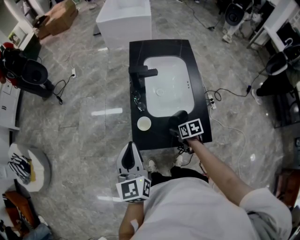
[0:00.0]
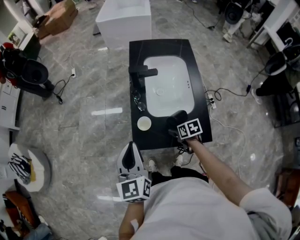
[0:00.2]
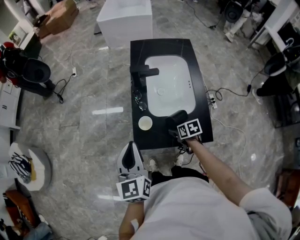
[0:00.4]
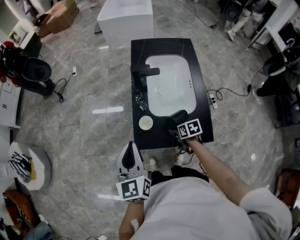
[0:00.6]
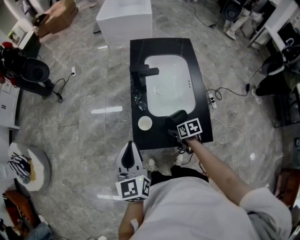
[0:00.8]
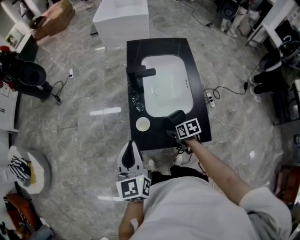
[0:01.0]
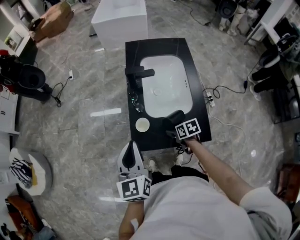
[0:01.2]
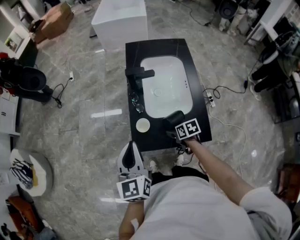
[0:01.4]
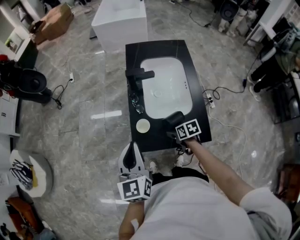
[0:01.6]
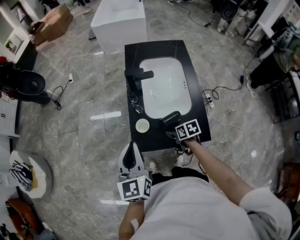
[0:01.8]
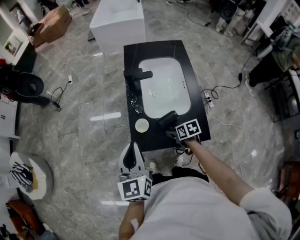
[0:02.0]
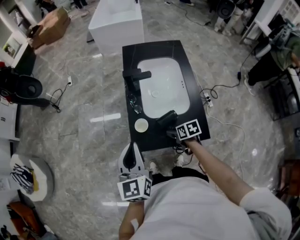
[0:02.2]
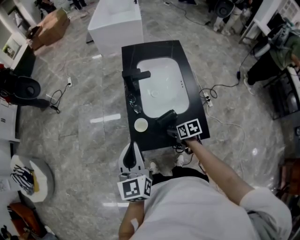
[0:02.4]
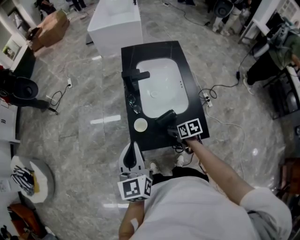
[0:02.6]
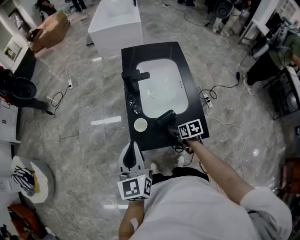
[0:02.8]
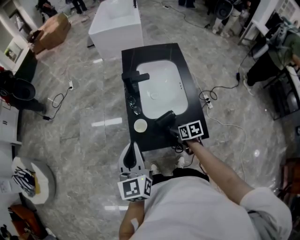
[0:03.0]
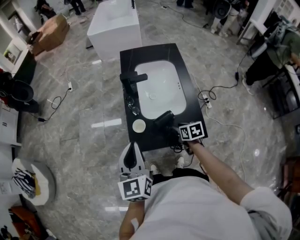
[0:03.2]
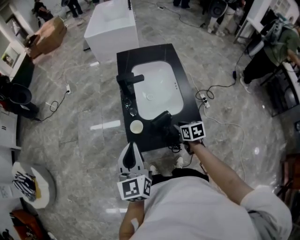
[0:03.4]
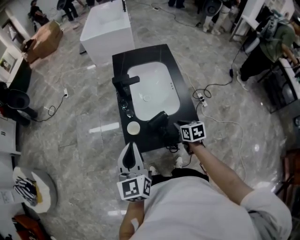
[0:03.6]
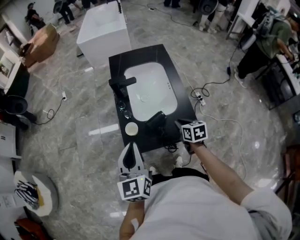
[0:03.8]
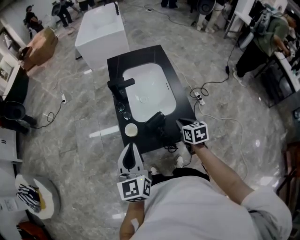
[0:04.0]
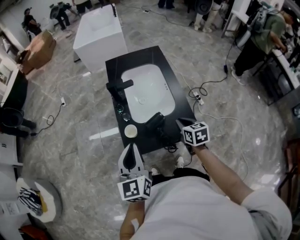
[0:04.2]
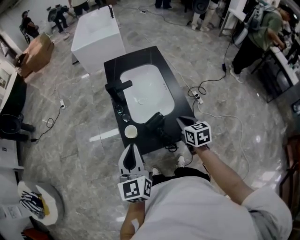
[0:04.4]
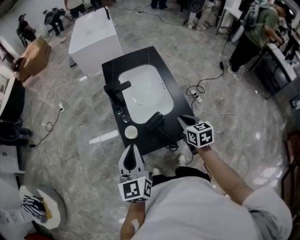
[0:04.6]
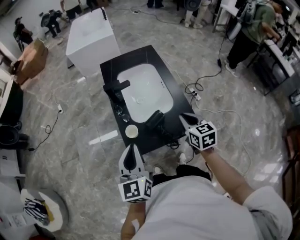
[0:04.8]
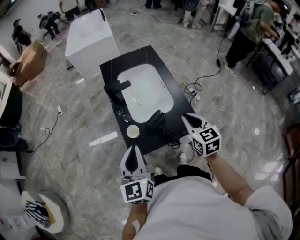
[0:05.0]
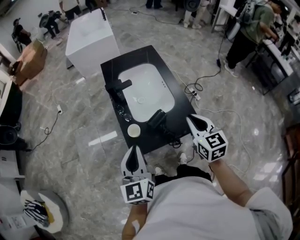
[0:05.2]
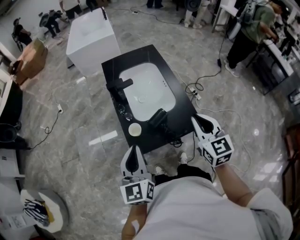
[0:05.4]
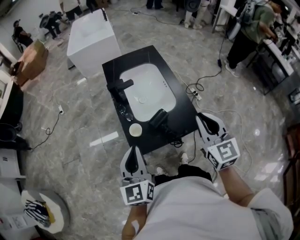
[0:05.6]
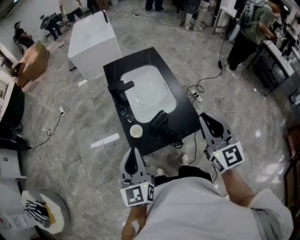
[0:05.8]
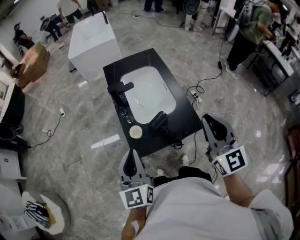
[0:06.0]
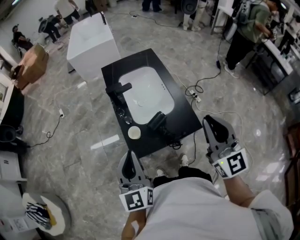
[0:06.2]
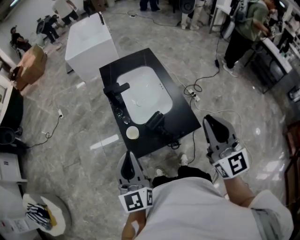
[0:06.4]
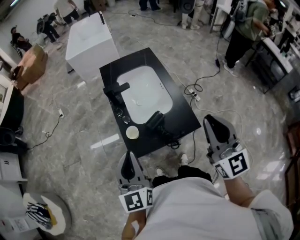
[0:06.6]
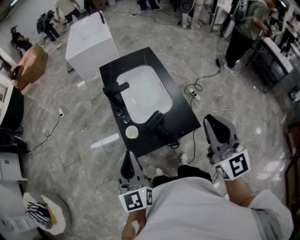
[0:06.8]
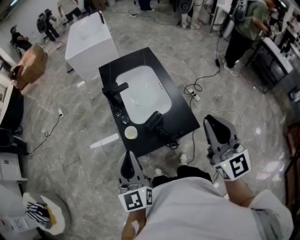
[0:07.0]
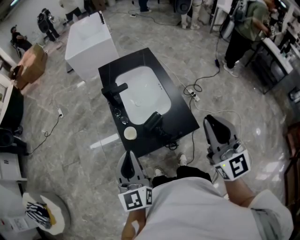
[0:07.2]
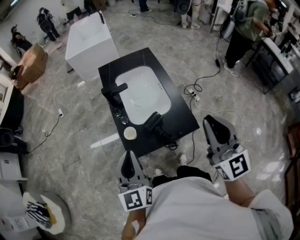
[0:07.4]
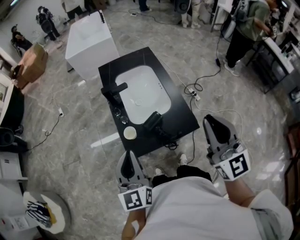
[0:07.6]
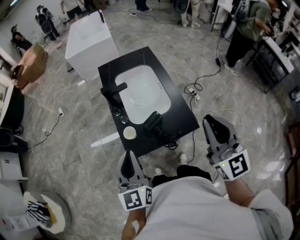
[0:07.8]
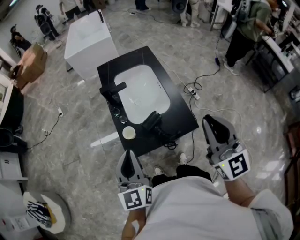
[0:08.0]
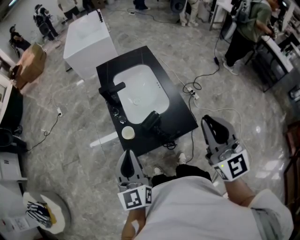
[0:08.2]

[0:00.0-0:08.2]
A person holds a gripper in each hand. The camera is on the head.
0:00.0 to 0:01.6: The grippers move only a little.
0:01.6 to 0:03.2: The right gripper changes place by some 5 cm, and closes.
0:03.2 to 0:05.0: The right gripper moves upward, roughly 20 cm, swivels some 40 degrees, and closes.
0:05.0 to 0:06.6: The right gripper goes roughly 20 cm upward and backward, and points its fingers about 30 degrees further upward.
0:06.6 to 0:08.2: The grippers make only small movements.

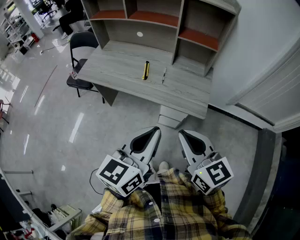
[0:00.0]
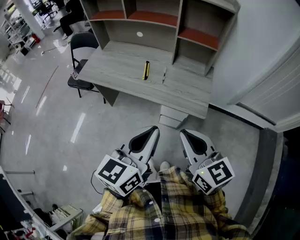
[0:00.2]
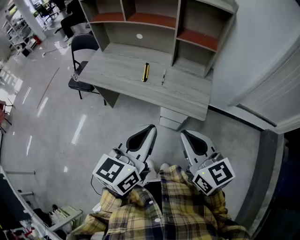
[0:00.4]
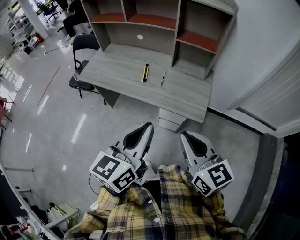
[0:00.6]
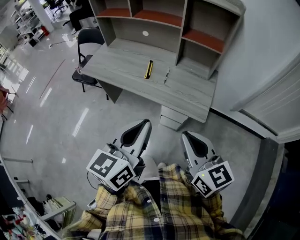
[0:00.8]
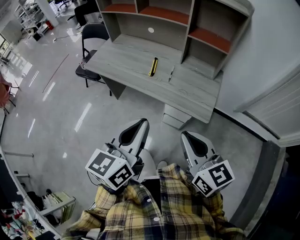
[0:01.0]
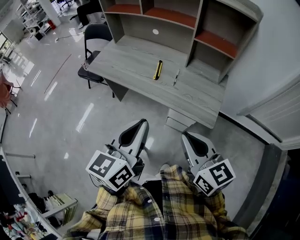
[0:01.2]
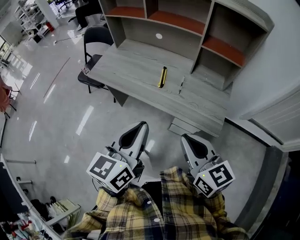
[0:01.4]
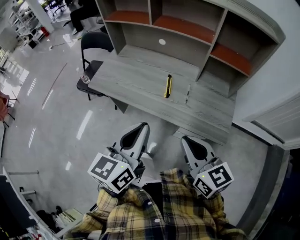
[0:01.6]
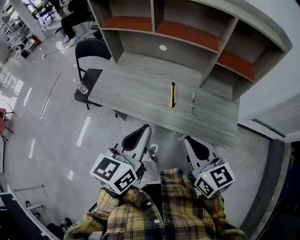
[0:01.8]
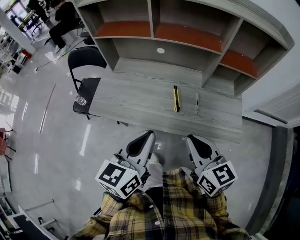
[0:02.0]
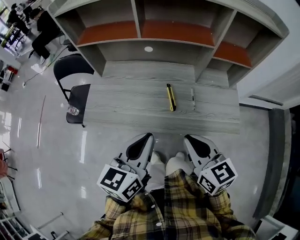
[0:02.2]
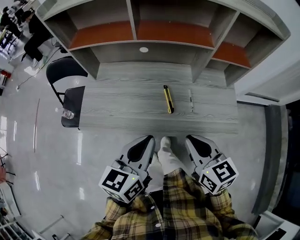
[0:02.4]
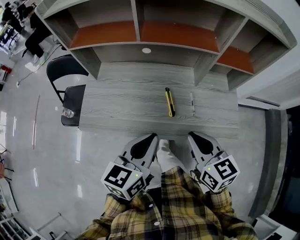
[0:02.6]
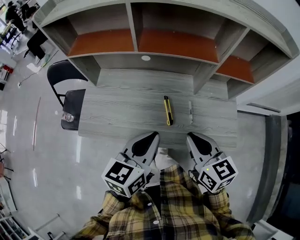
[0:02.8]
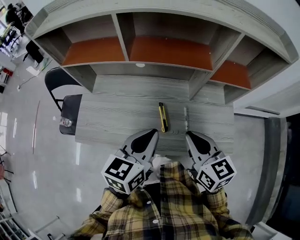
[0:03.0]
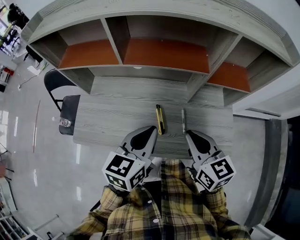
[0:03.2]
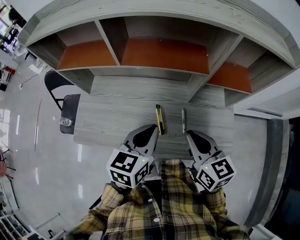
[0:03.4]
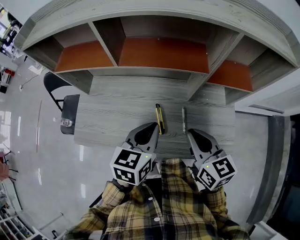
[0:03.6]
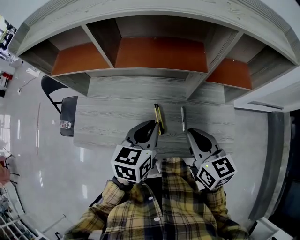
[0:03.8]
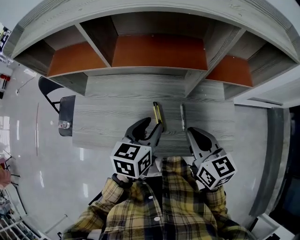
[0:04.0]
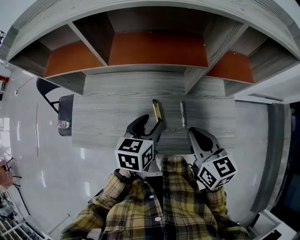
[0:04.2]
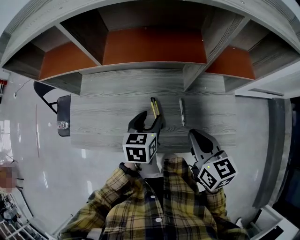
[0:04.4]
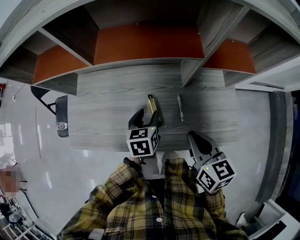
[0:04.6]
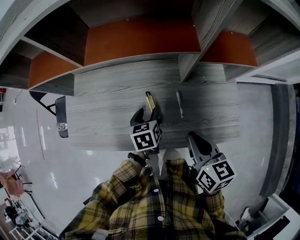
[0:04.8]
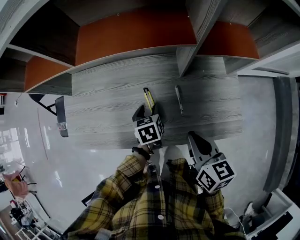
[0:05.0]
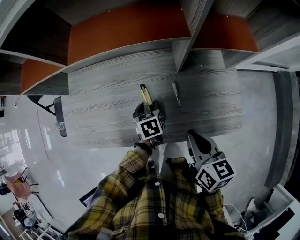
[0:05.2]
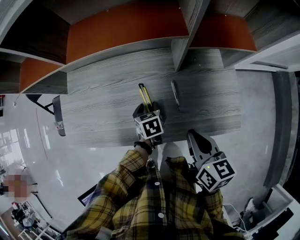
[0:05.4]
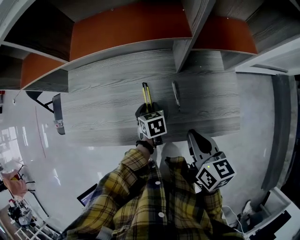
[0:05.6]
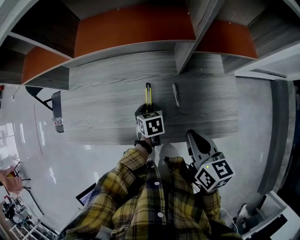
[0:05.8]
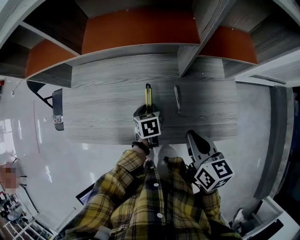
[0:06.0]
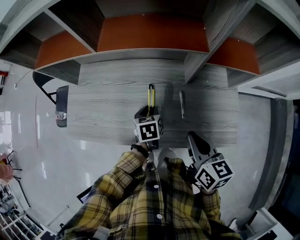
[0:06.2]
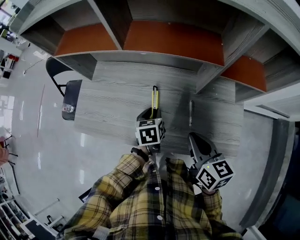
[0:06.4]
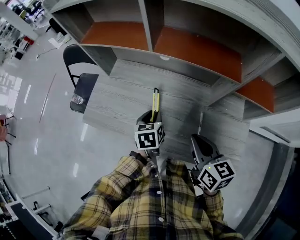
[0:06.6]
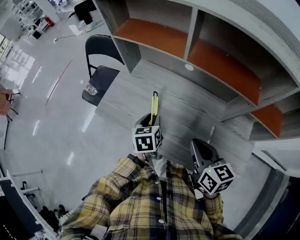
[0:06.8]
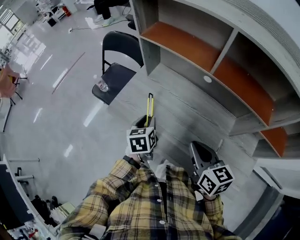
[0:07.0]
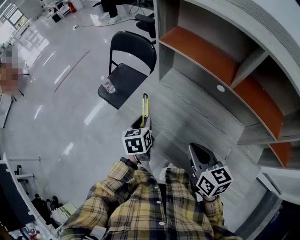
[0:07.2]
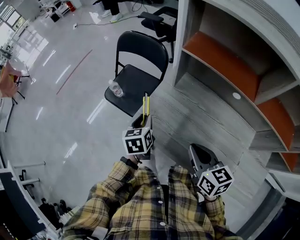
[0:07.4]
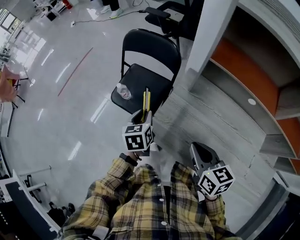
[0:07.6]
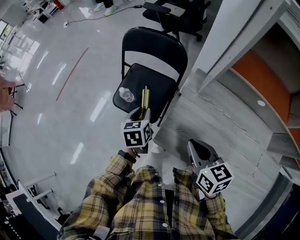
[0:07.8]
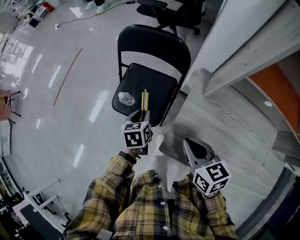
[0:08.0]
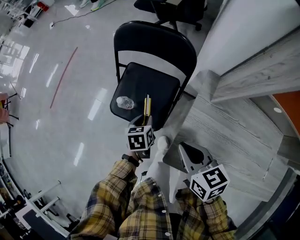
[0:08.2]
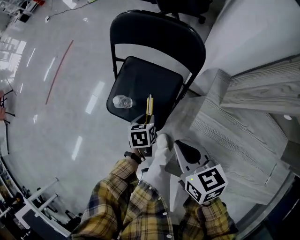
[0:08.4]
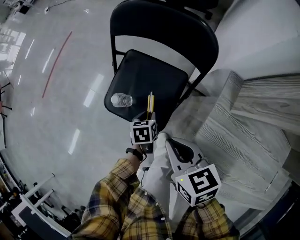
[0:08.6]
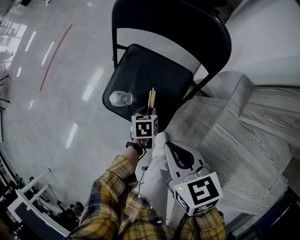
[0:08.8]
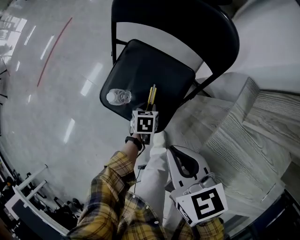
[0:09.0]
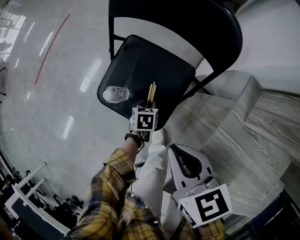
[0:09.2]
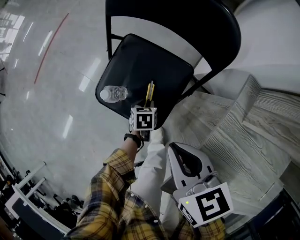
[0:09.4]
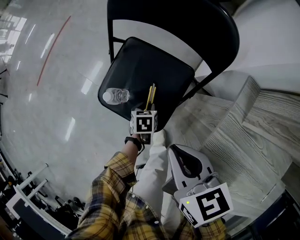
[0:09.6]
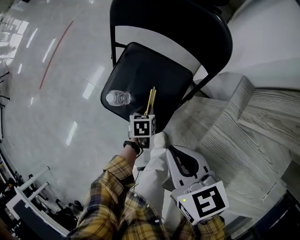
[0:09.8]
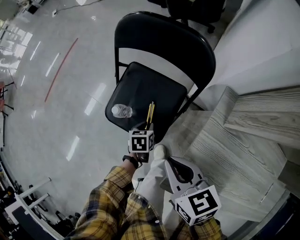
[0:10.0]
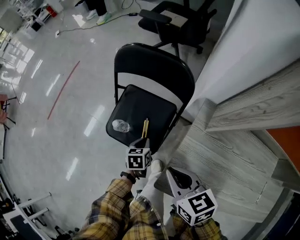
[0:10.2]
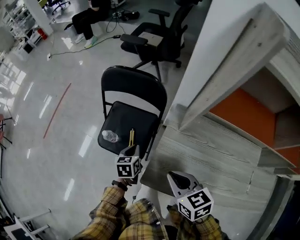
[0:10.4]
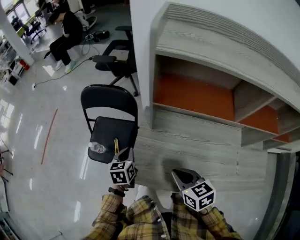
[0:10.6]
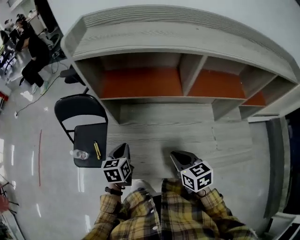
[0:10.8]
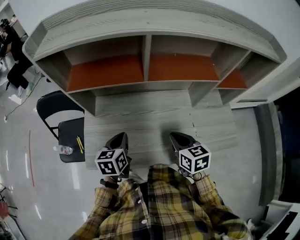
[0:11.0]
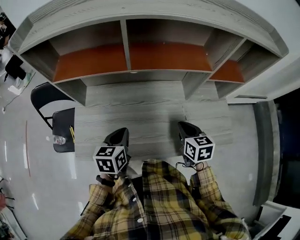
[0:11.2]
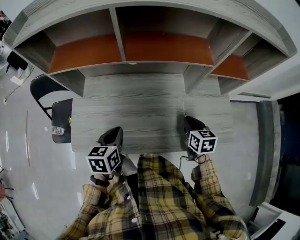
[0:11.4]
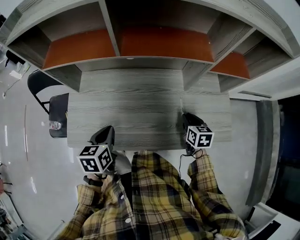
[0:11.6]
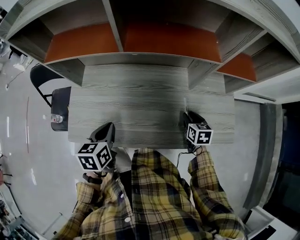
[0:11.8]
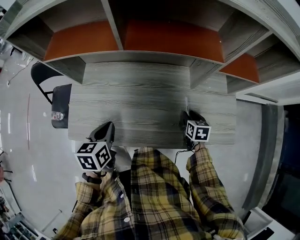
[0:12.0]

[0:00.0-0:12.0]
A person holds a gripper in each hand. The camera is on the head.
0:00.0 to 0:01.6: Both grippers move forward and to the left, about 20 cm.
0:01.6 to 0:03.0: Both grippers travel together forward, approximately 25 cm. The left gripper rotates roughly 30 degrees. Meanwhile the right gripper turns by roughly 20 degrees.
0:03.0 to 0:04.4: The left gripper goes approximately 15 cm downward and forward, swivels approximately 20 degrees, and opens up; the right gripper is displaced downward and to the right by some 5 cm.
0:04.4 to 0:06.0: The right gripper moves downward, about 5 cm, while the left gripper shifts about 15 cm downward, rotates roughly 20 degrees, and closes up.
0:06.0 to 0:07.6: Both grippers are carried approximately 50 cm. The left gripper changes its angle by some 30 degrees, while the right gripper turns by approximately 40 degrees.
0:07.6 to 0:09.0: The right gripper goes roughly 35 cm forward, to the left and downward. The left gripper is displaced downward by approximately 40 cm, and rotates approximately 30 degrees.
0:09.0 to 0:10.4: The right gripper heads upward, backward and to the right, covering about 20 cm, while the left gripper heads upward, covering roughly 30 cm, and closes up.
0:10.4 to 0:12.0: The pair of grippers is taken some 50 cm. The right gripper turns by about 40 degrees, and opens. Meanwhile the left gripper changes its angle by approximately 20 degrees.

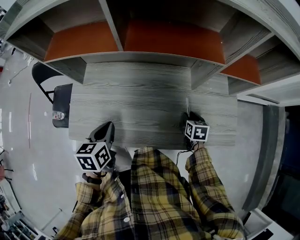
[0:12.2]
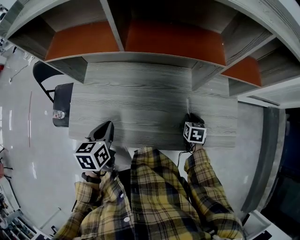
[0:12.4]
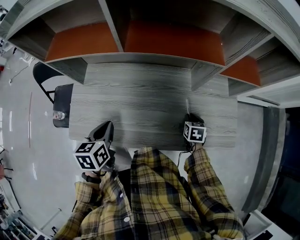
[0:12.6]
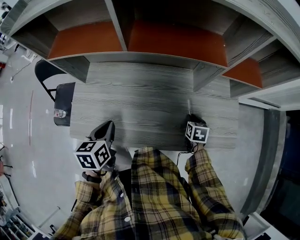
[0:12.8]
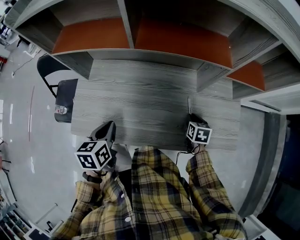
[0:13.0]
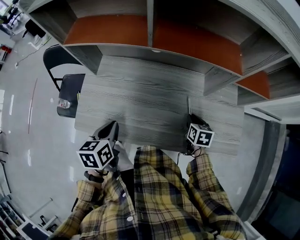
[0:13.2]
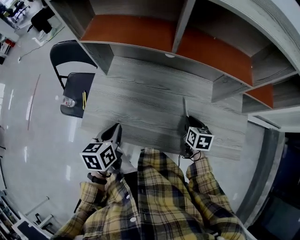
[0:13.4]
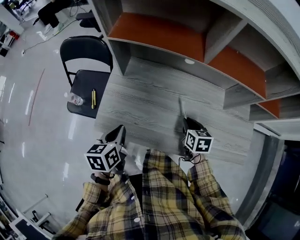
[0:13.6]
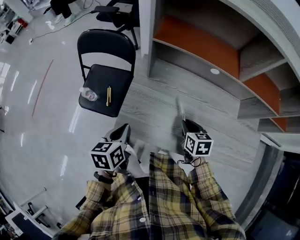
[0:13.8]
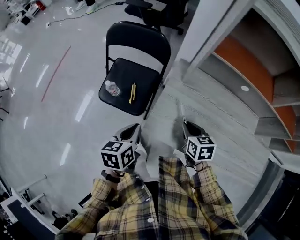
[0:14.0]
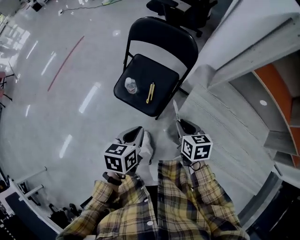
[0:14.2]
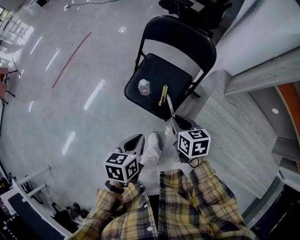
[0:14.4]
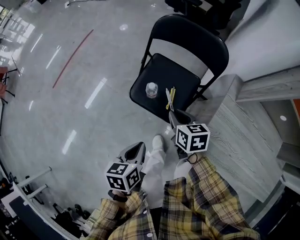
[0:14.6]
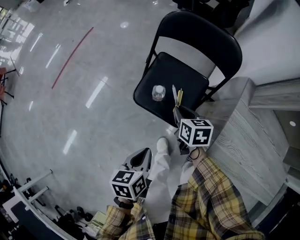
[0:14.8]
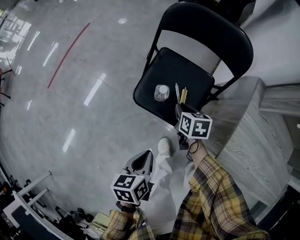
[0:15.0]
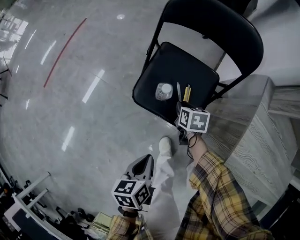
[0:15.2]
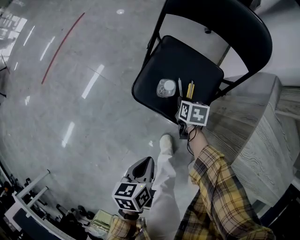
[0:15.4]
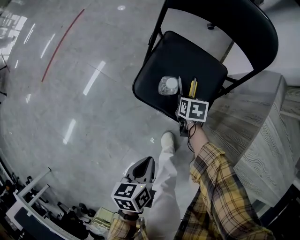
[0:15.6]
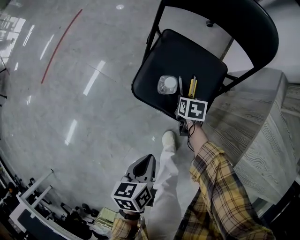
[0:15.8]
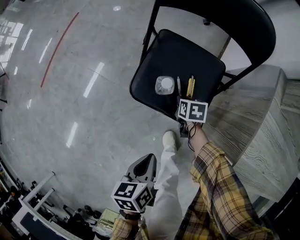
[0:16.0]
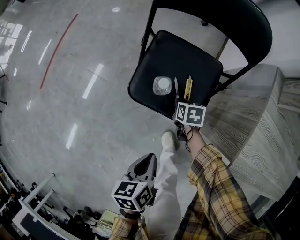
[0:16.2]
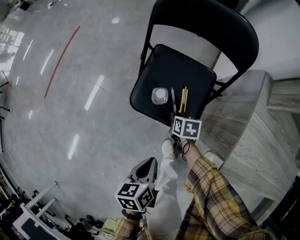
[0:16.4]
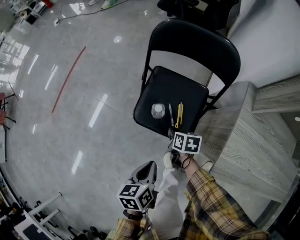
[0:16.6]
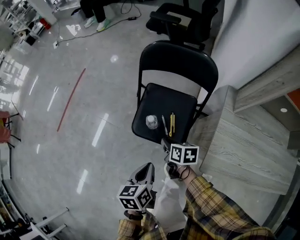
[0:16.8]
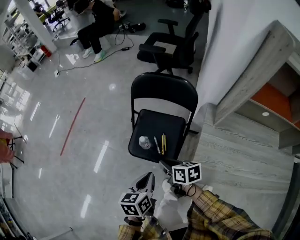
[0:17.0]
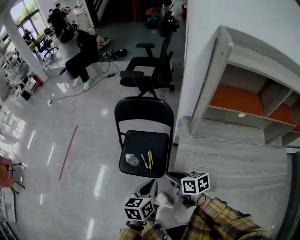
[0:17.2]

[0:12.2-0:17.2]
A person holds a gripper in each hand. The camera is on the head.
0:12.2 to 0:13.8: Both grippers travel together to the left, approximately 30 cm. The right gripper changes its angle by about 20 degrees.
0:13.8 to 0:15.6: The left gripper shifts about 40 cm to the left and downward, and changes its angle by some 30 degrees; the right gripper shifts approximately 60 cm to the left, downward and forward.
0:15.6 to 0:17.2: The right gripper is displaced upward and backward by some 40 cm, and tips its fingers upward by some 30 degrees. The left gripper goes roughly 30 cm upward and to the right, and turns by about 30 degrees.
